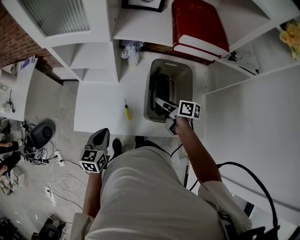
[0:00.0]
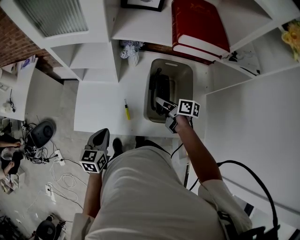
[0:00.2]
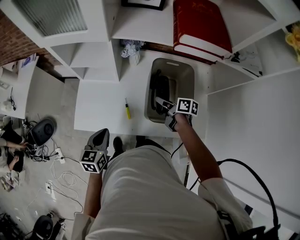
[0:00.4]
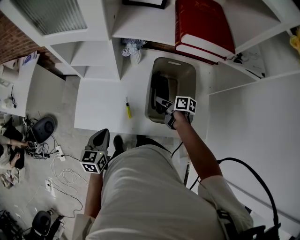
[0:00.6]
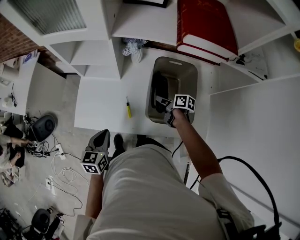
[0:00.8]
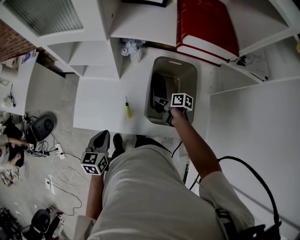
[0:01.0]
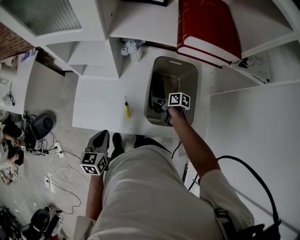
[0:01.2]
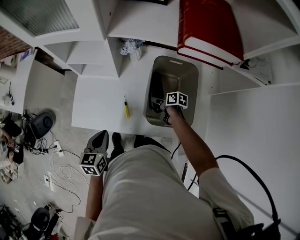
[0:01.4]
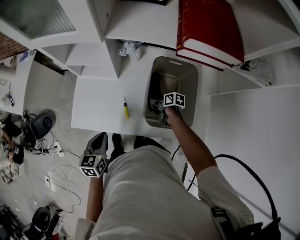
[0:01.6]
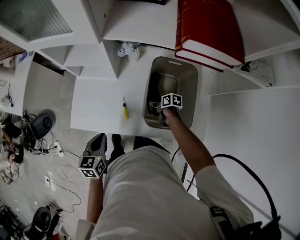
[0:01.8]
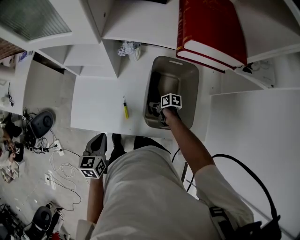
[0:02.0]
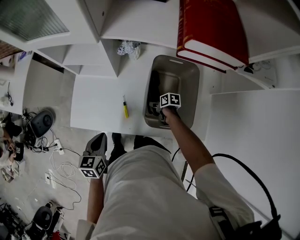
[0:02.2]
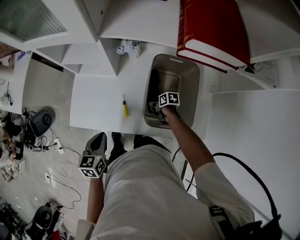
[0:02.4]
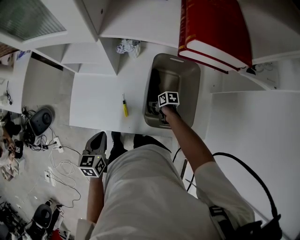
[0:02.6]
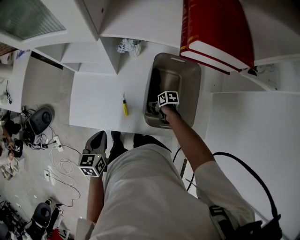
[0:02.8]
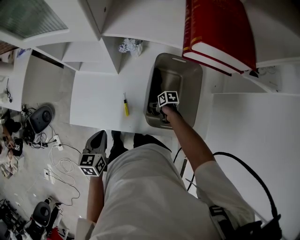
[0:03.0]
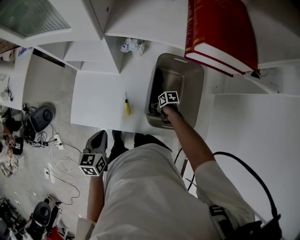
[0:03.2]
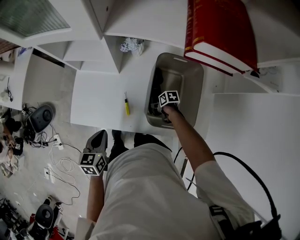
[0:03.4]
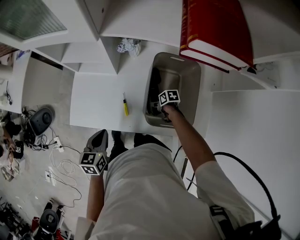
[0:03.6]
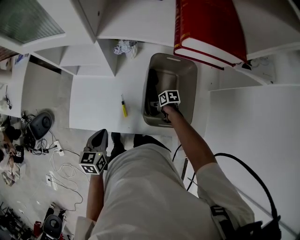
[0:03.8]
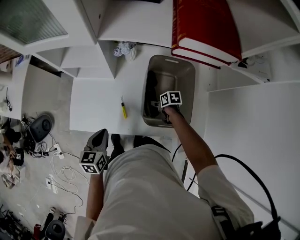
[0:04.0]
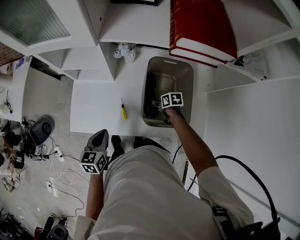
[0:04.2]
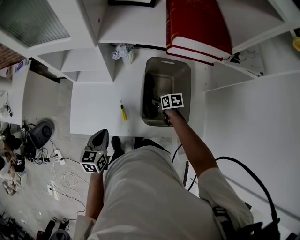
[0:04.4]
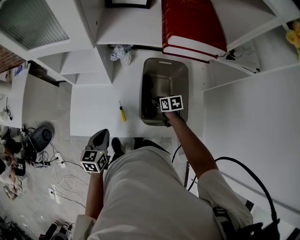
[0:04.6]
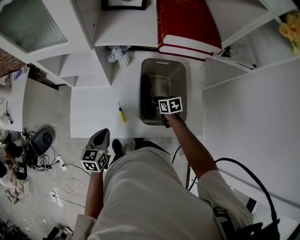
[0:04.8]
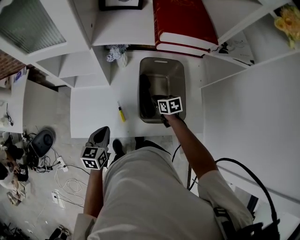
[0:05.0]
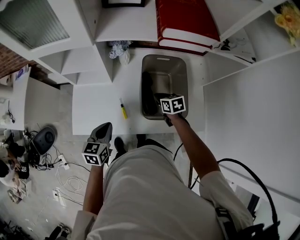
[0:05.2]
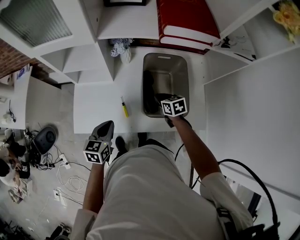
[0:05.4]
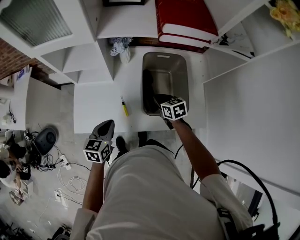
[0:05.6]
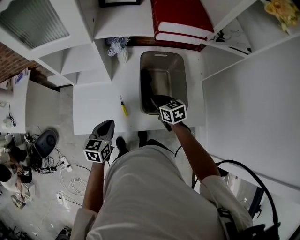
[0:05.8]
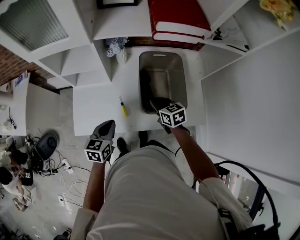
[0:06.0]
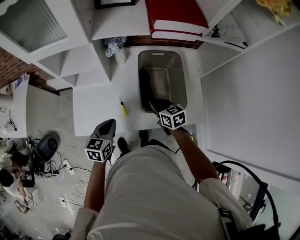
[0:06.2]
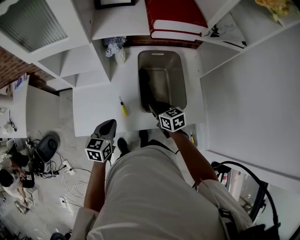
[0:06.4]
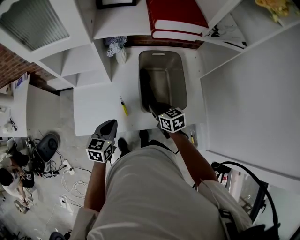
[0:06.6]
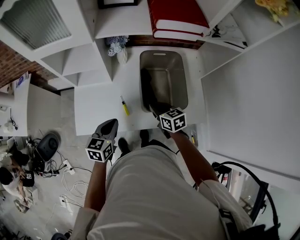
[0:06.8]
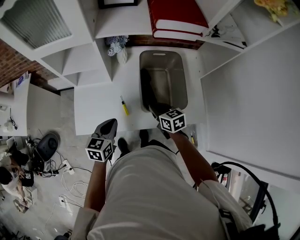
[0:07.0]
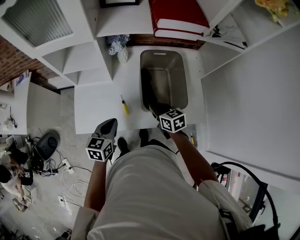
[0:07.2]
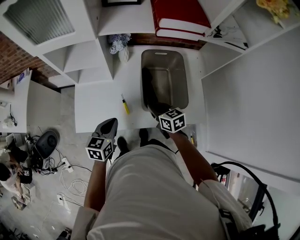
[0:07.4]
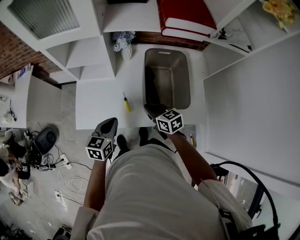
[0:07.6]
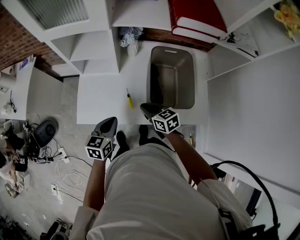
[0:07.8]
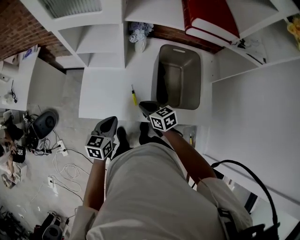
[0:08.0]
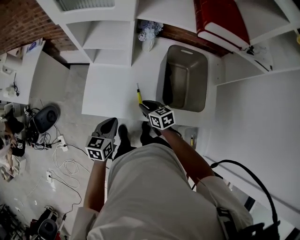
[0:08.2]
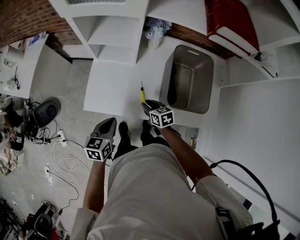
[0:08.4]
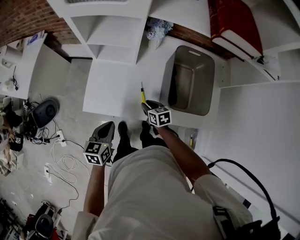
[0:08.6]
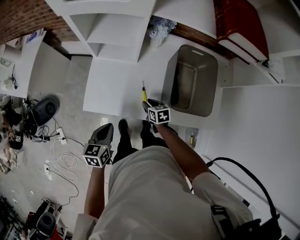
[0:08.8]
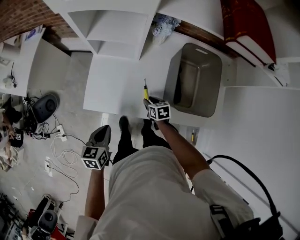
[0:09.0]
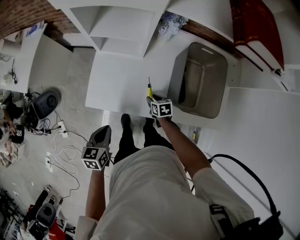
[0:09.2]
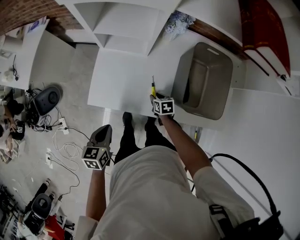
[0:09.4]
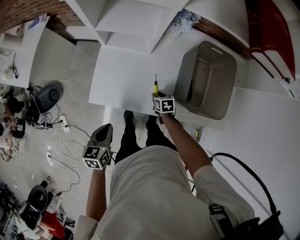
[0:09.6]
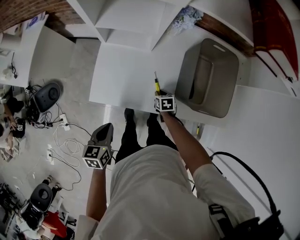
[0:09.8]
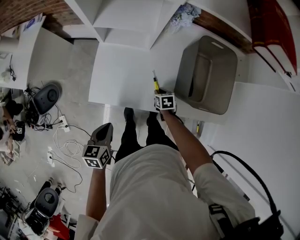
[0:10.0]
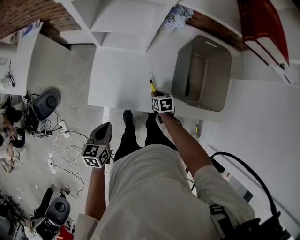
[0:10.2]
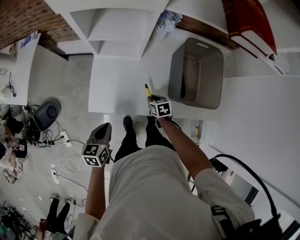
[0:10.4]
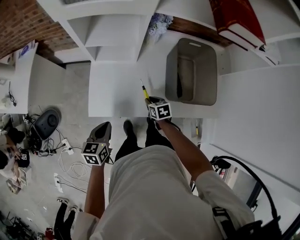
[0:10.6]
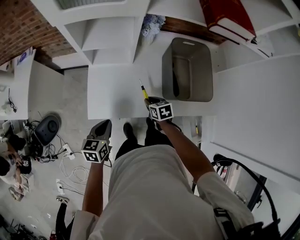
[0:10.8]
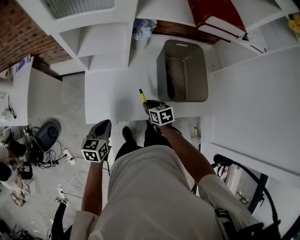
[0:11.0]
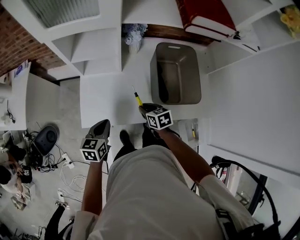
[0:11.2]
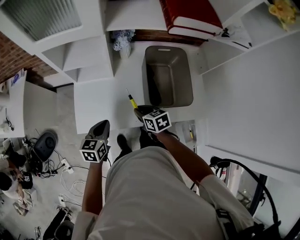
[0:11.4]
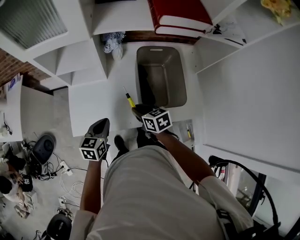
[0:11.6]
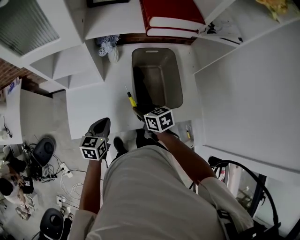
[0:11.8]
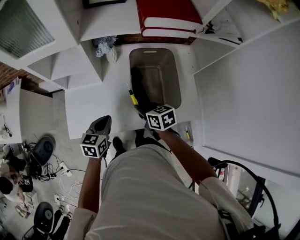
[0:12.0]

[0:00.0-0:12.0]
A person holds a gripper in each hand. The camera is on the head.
0:00.0 to 0:01.6: The right gripper moves downward, roughly 20 cm, and turns by about 30 degrees.
0:01.6 to 0:03.0: The right gripper travels downward by roughly 5 cm.
0:03.0 to 0:04.4: The right gripper shifts approximately 10 cm upward, and rotates roughly 20 degrees.
0:04.4 to 0:06.0: The right gripper shifts approximately 15 cm upward and backward, rotates some 30 degrees, and closes its fingers.
0:06.0 to 0:07.6: The right gripper shifts some 10 cm to the left and backward.
0:07.6 to 0:09.0: The right gripper is displaced downward by approximately 20 cm, changes its angle by some 20 degrees, and opens up, while the left gripper moves to the left and downward, roughly 15 cm, and turns by approximately 20 degrees.
0:10.4 to 0:12.0: The right gripper is displaced upward and to the right by some 25 cm, and changes its angle by approximately 20 degrees; the left gripper is displaced to the right and forward by some 25 cm.

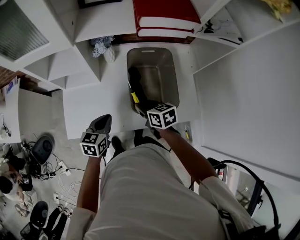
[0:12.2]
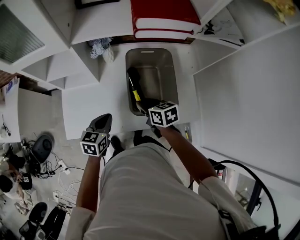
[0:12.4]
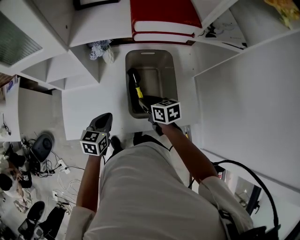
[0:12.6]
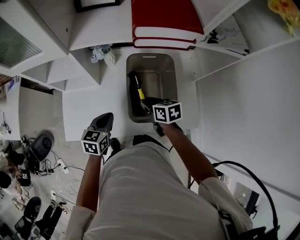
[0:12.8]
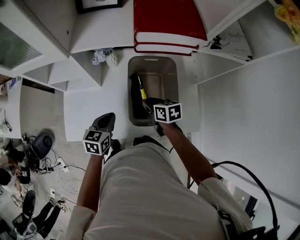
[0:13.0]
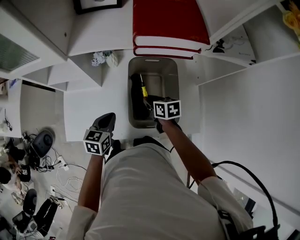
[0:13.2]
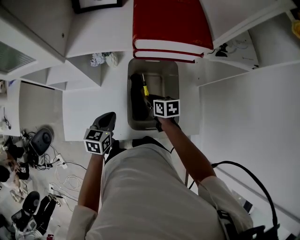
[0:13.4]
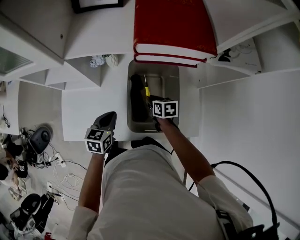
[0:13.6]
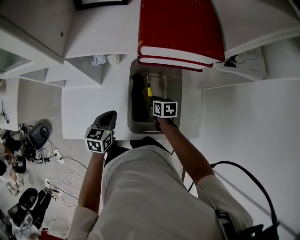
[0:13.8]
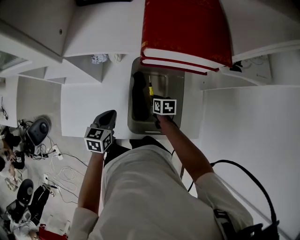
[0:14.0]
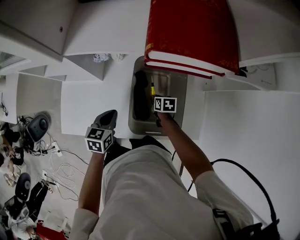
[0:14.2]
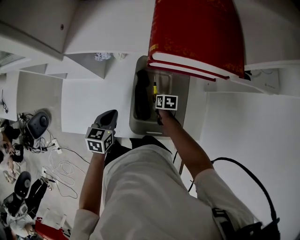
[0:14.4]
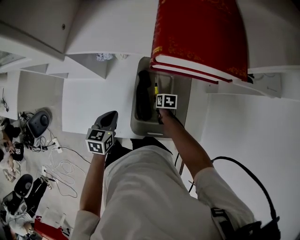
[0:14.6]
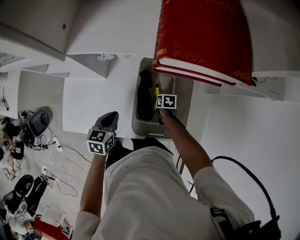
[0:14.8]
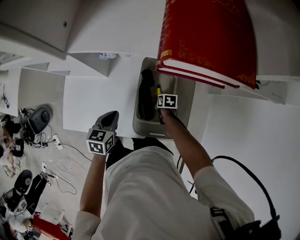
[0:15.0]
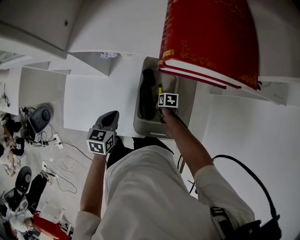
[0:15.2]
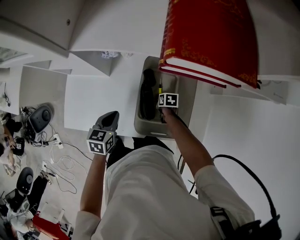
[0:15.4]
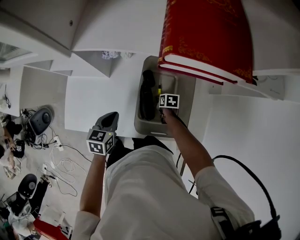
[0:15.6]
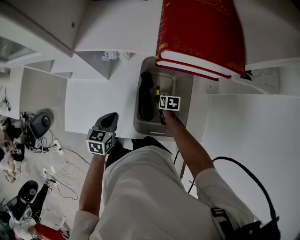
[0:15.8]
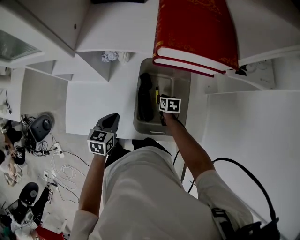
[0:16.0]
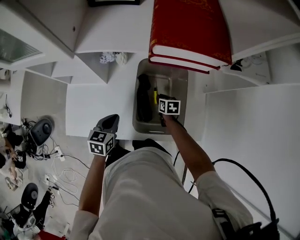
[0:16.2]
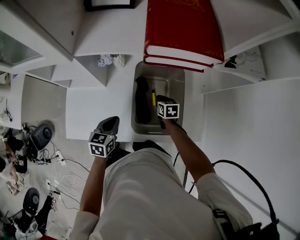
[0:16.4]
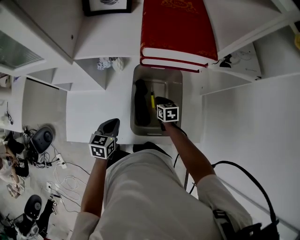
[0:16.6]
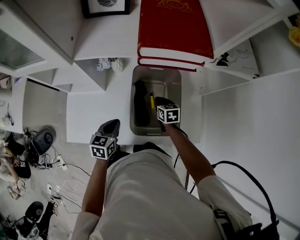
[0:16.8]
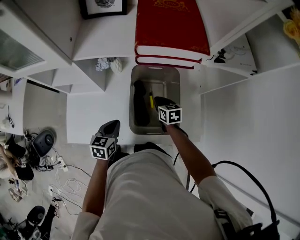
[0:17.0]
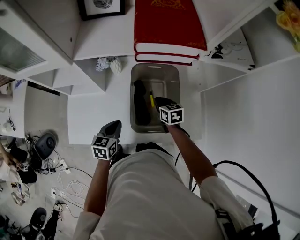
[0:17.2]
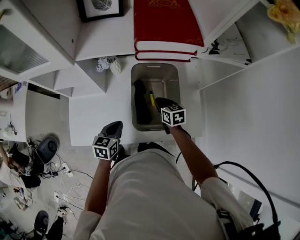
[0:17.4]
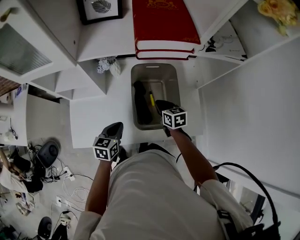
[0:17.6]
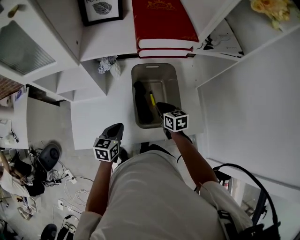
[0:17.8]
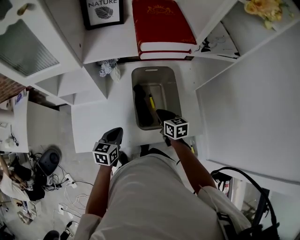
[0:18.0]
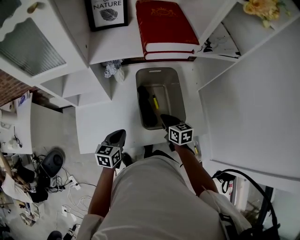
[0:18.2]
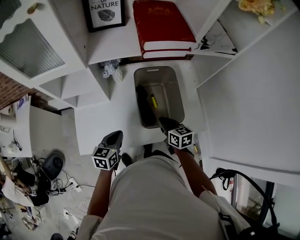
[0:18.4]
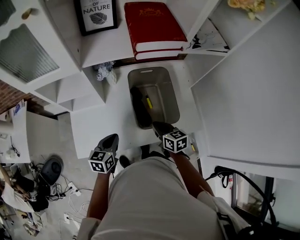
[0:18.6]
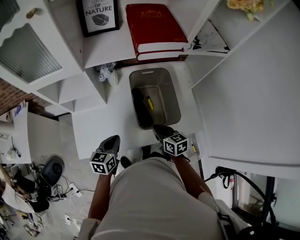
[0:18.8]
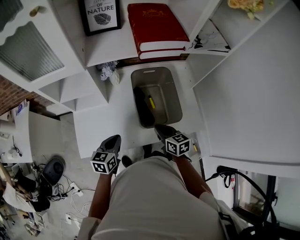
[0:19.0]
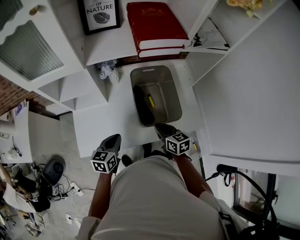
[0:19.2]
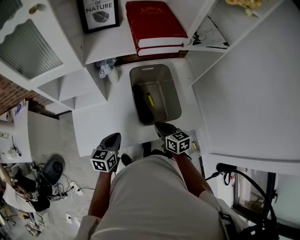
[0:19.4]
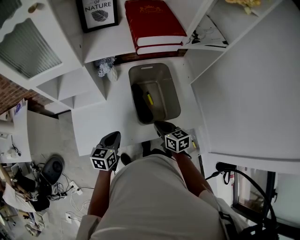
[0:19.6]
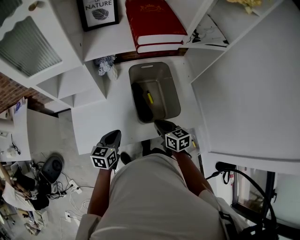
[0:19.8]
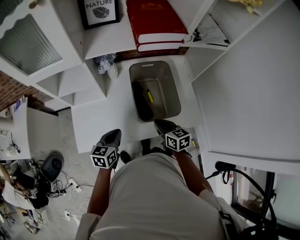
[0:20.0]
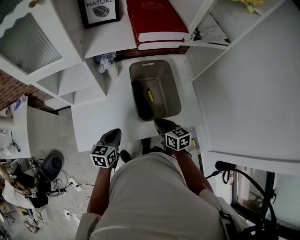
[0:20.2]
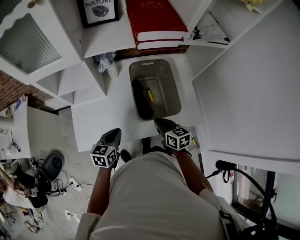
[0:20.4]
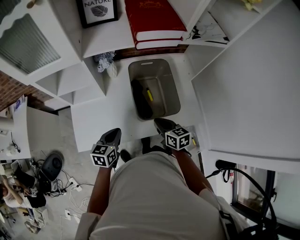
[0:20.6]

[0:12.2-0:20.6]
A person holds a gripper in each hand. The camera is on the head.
0:12.2 to 0:13.6: The right gripper heads forward, downward and to the right, covering about 20 cm. The left gripper moves forward and to the right, some 10 cm.
0:13.6 to 0:15.0: The right gripper heads downward, covering some 15 cm, and swivels approximately 20 degrees.
0:15.0 to 0:16.4: The right gripper travels upward by approximately 10 cm, and turns by roughly 20 degrees.
0:16.4 to 0:17.8: The right gripper travels upward and backward by about 15 cm.
0:17.8 to 0:19.2: The right gripper goes roughly 10 cm backward; the left gripper goes about 5 cm backward.
0:19.2 to 0:20.6: The grippers move only a little.

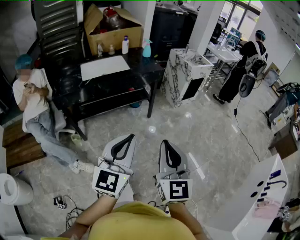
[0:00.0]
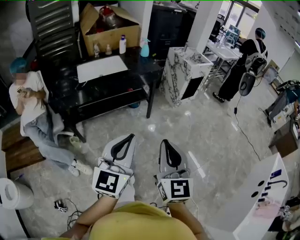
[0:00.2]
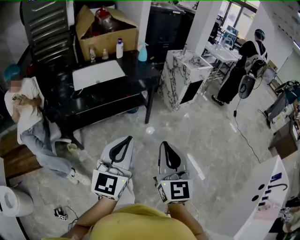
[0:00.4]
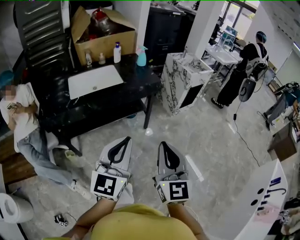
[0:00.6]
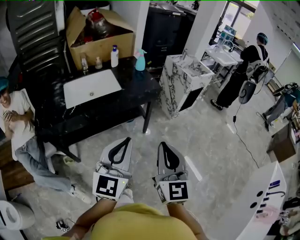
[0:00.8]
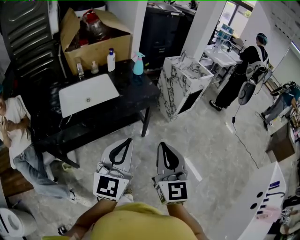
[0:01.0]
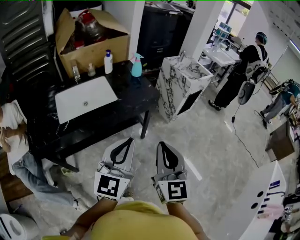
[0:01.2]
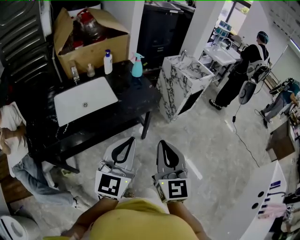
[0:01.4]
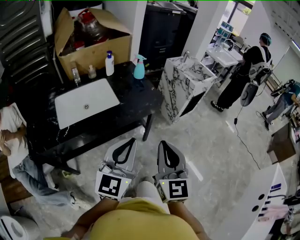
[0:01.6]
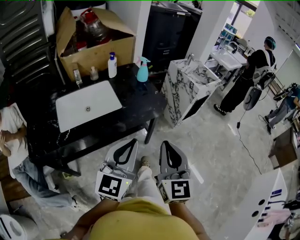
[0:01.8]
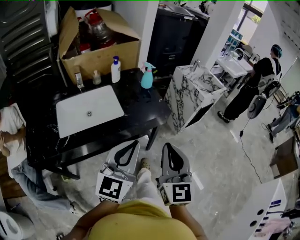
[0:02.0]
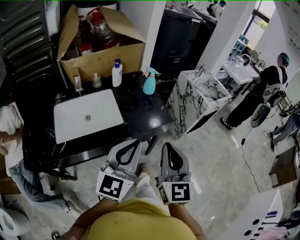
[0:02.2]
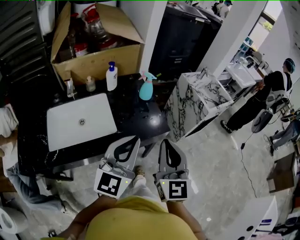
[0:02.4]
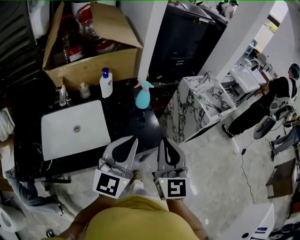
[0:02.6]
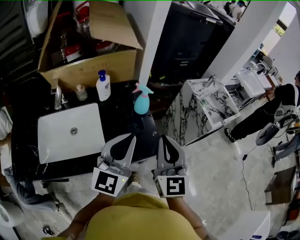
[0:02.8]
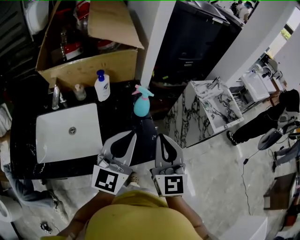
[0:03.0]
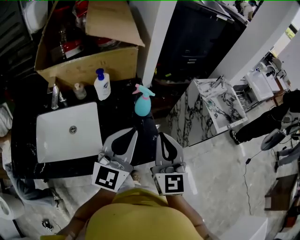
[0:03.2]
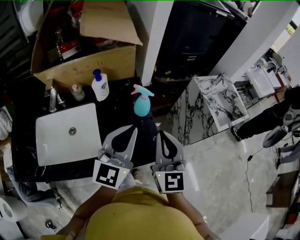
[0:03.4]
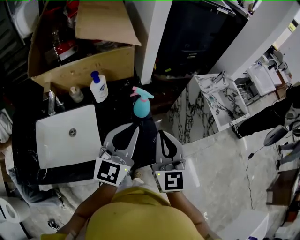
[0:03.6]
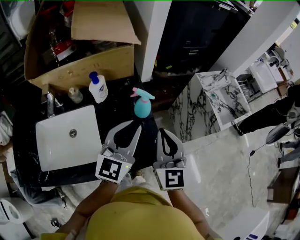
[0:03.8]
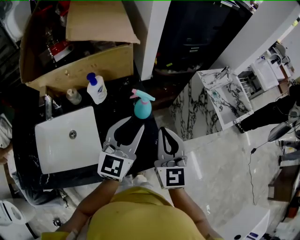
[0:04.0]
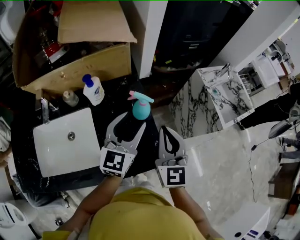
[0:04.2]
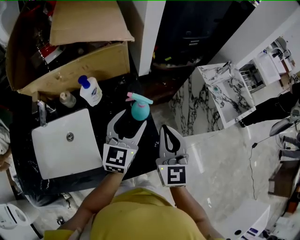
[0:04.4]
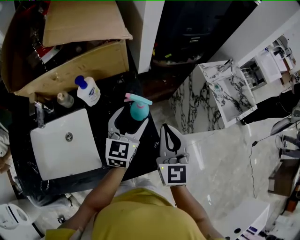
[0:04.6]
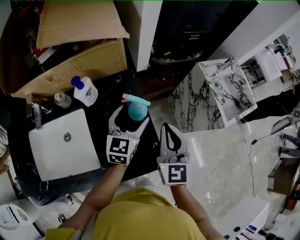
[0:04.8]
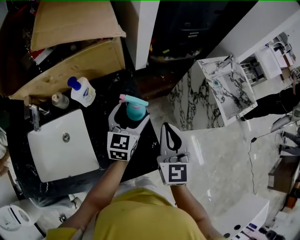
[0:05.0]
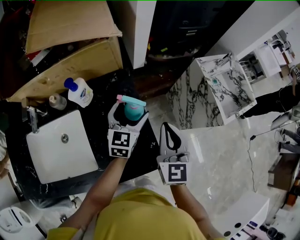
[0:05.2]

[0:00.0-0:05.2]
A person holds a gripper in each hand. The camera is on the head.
0:00.0 to 0:01.8: The two grippers travel together, forward, about 50 cm.
0:01.8 to 0:03.4: The two grippers travel together, forward, approximately 40 cm.
0:03.4 to 0:05.2: The right gripper heads forward and downward, covering roughly 15 cm; the left gripper travels forward and downward by about 25 cm, swivels approximately 20 degrees, and opens up.
